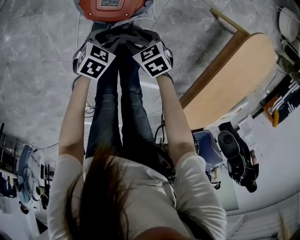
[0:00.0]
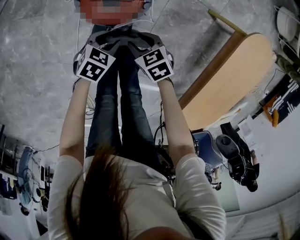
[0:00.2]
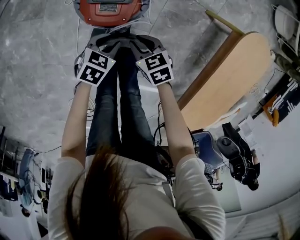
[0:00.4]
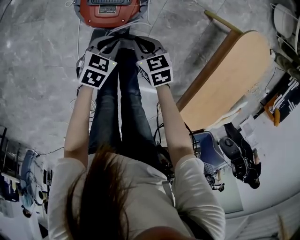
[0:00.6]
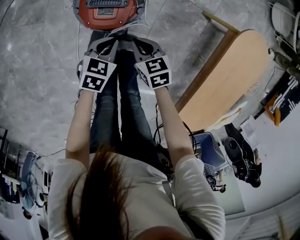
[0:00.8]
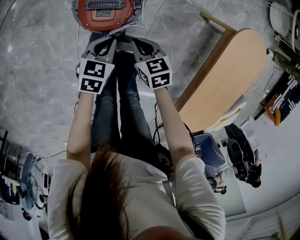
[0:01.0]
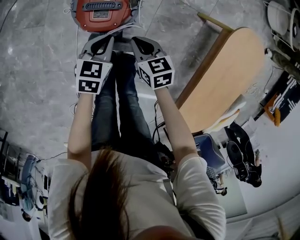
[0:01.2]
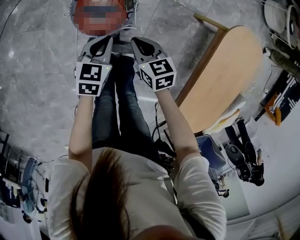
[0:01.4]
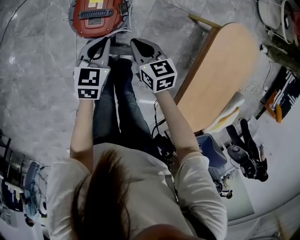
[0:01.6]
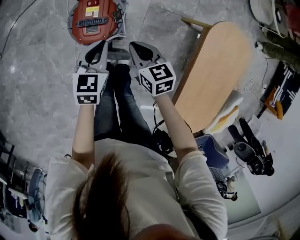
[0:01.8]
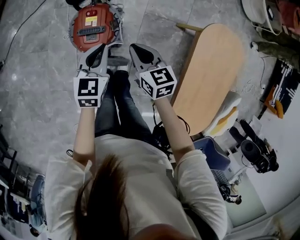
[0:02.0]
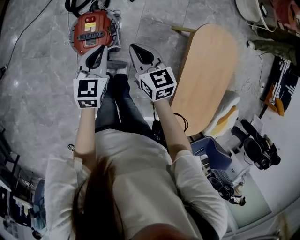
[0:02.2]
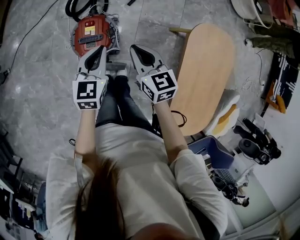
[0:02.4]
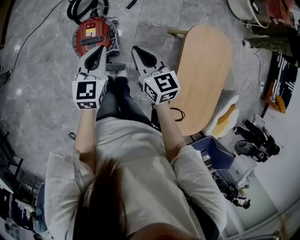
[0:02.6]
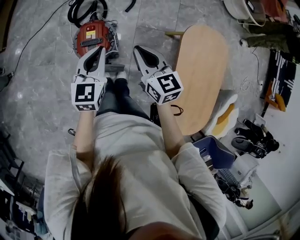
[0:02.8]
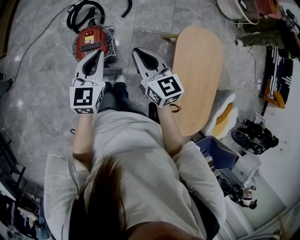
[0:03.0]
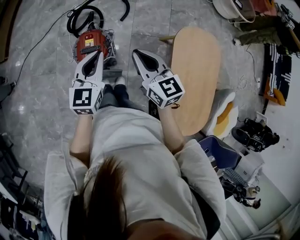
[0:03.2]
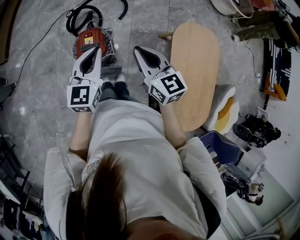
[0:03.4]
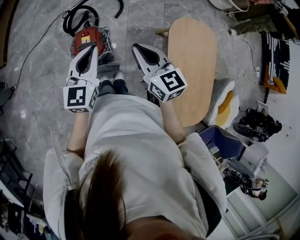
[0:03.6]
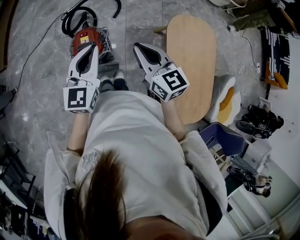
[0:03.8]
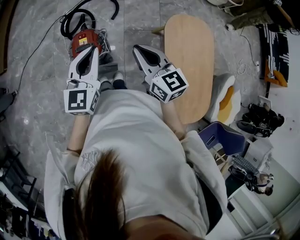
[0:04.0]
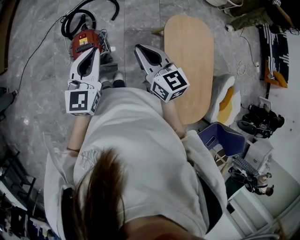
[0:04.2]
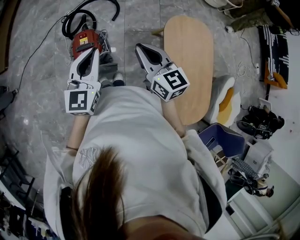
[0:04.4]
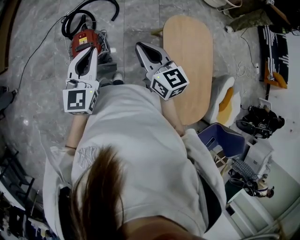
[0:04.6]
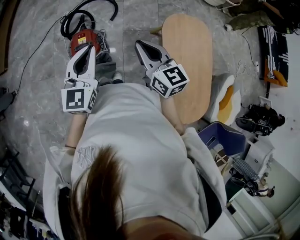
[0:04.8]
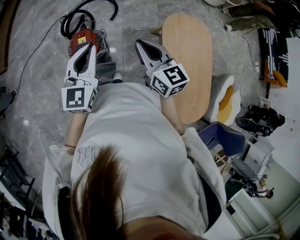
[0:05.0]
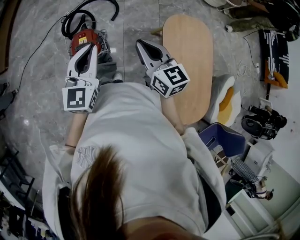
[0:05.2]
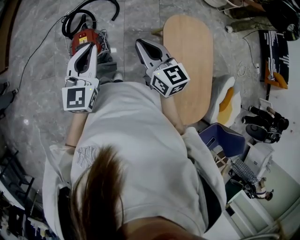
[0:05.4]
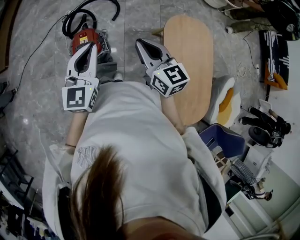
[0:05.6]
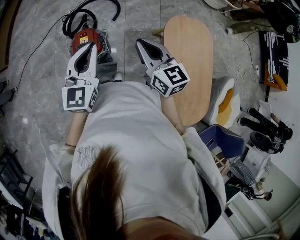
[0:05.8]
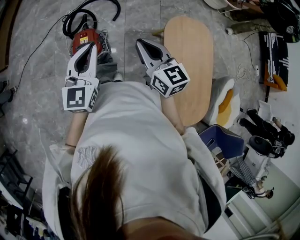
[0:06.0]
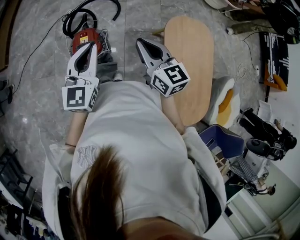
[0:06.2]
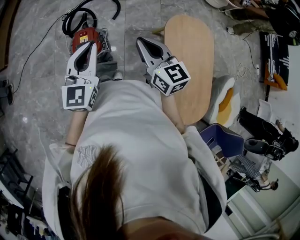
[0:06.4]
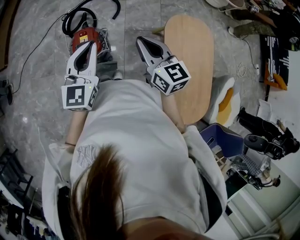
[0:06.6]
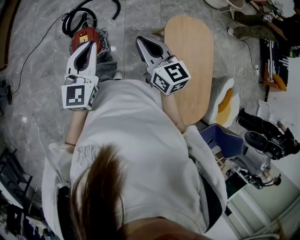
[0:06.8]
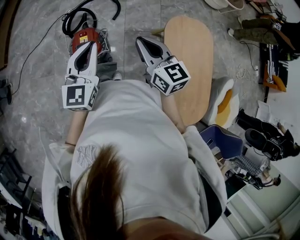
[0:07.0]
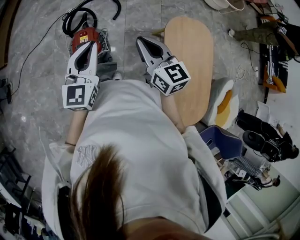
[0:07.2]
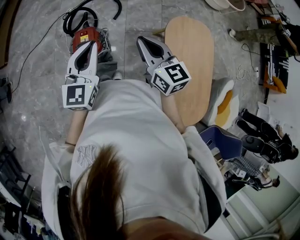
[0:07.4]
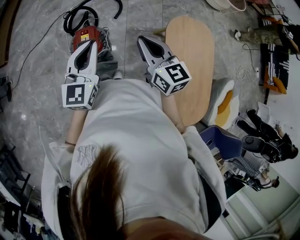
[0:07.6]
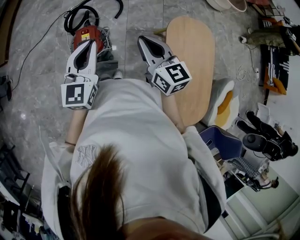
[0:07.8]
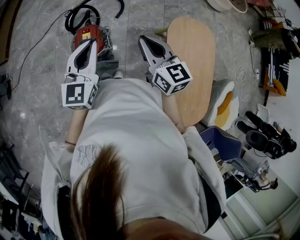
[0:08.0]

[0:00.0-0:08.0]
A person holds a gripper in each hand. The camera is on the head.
0:00.0 to 0:01.6: Both grippers move upward, some 15 cm. The right gripper rotates approximately 30 degrees, and closes. Meanwhile the left gripper swivels some 30 degrees, and closes up.
0:01.6 to 0:03.2: Both grippers move upward, about 35 cm. The right gripper turns by about 30 degrees; the left gripper turns by approximately 30 degrees.
0:03.2 to 0:04.8: The left gripper moves upward and backward, about 10 cm; the right gripper shifts some 10 cm backward and to the right.
0:04.8 to 0:06.4: Both grippers stay put.
0:06.4 to 0:08.0: The grippers stay close to where they were, moving slightly.

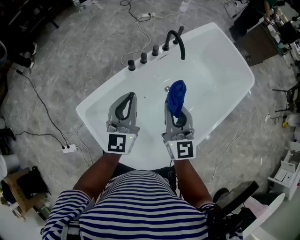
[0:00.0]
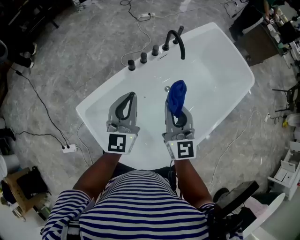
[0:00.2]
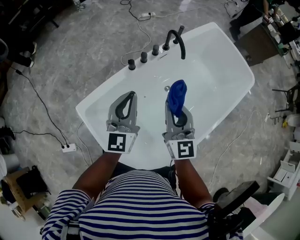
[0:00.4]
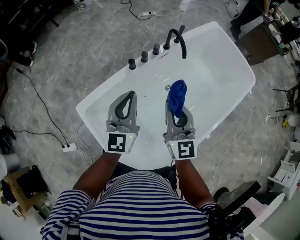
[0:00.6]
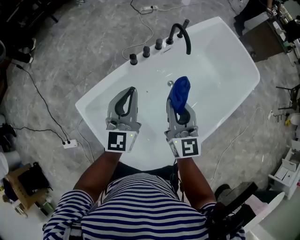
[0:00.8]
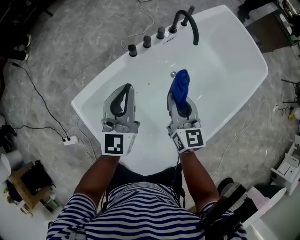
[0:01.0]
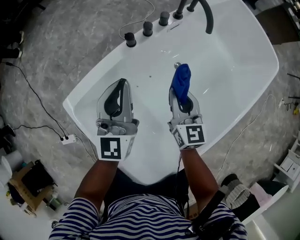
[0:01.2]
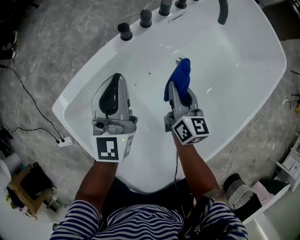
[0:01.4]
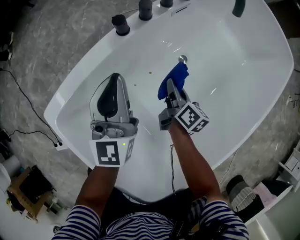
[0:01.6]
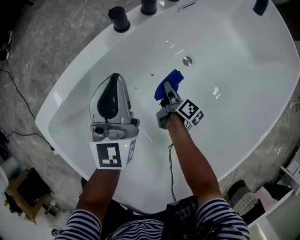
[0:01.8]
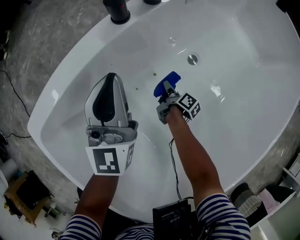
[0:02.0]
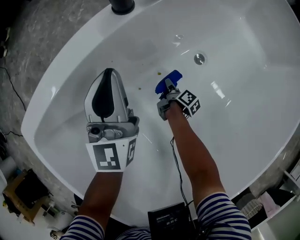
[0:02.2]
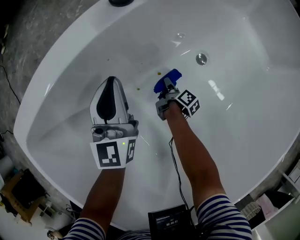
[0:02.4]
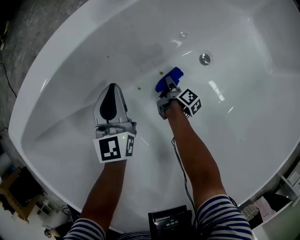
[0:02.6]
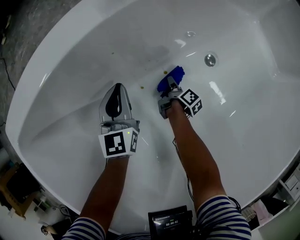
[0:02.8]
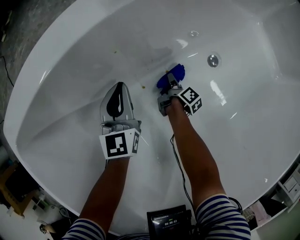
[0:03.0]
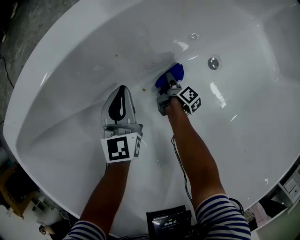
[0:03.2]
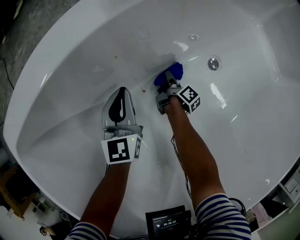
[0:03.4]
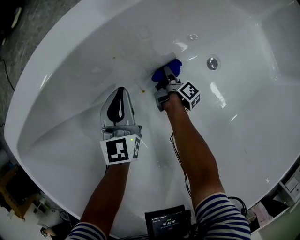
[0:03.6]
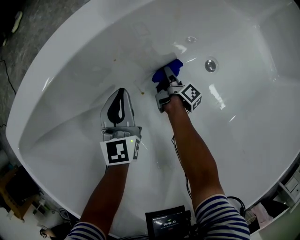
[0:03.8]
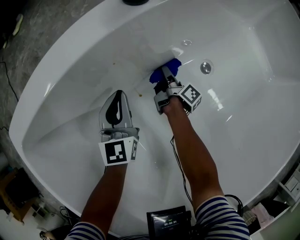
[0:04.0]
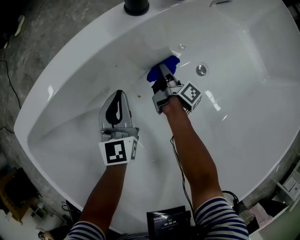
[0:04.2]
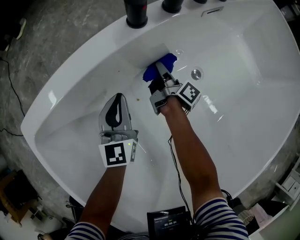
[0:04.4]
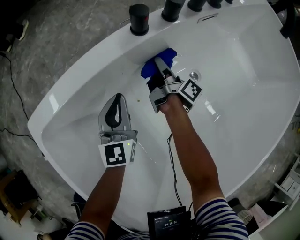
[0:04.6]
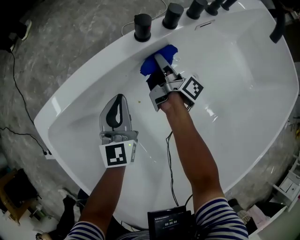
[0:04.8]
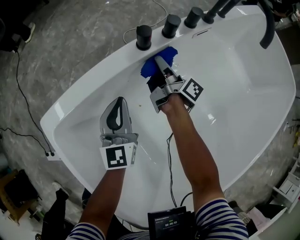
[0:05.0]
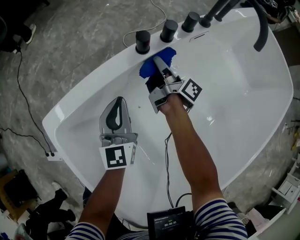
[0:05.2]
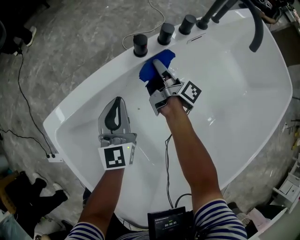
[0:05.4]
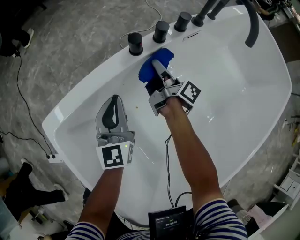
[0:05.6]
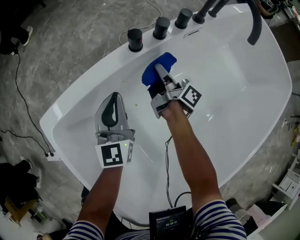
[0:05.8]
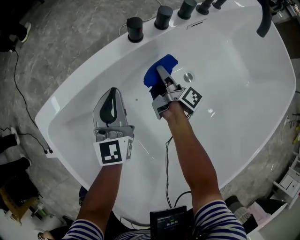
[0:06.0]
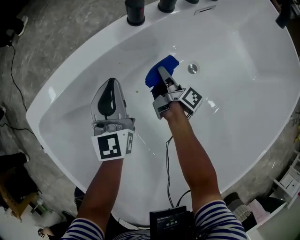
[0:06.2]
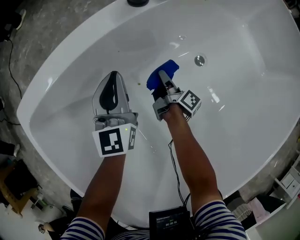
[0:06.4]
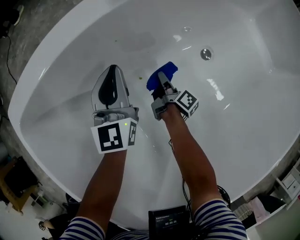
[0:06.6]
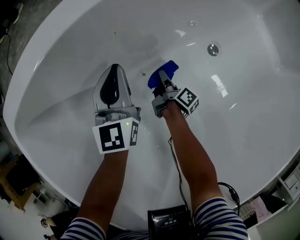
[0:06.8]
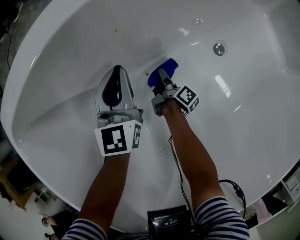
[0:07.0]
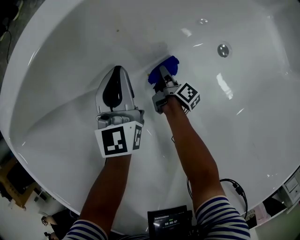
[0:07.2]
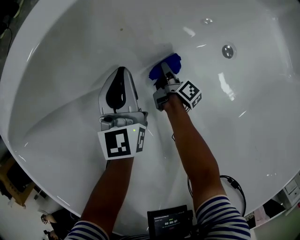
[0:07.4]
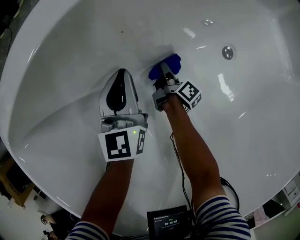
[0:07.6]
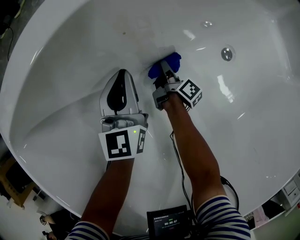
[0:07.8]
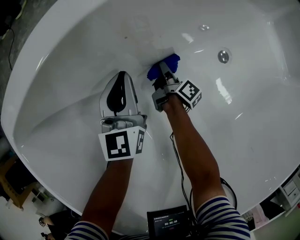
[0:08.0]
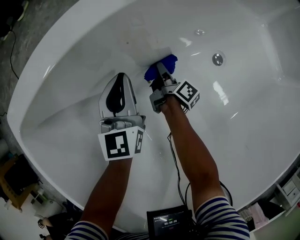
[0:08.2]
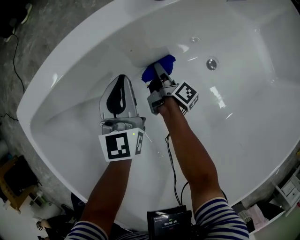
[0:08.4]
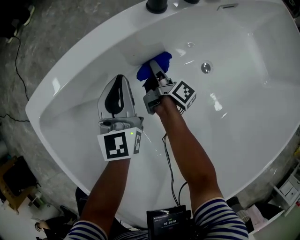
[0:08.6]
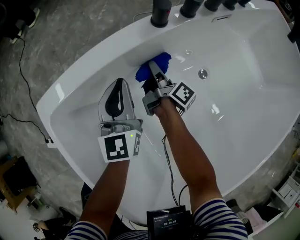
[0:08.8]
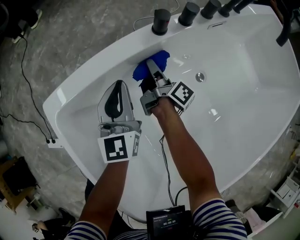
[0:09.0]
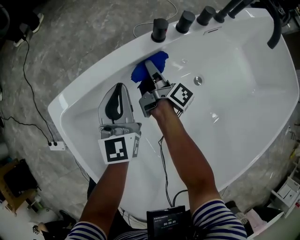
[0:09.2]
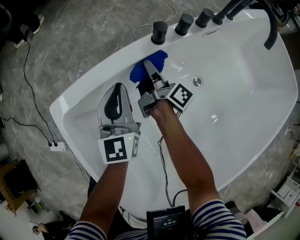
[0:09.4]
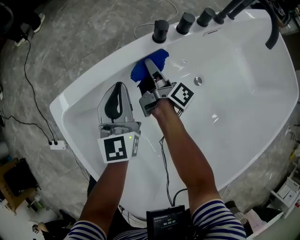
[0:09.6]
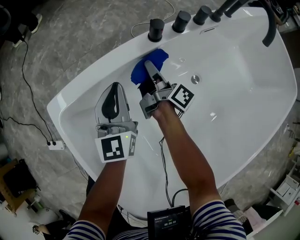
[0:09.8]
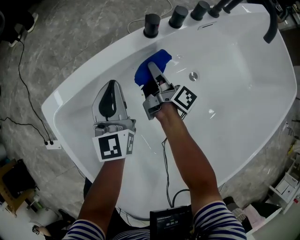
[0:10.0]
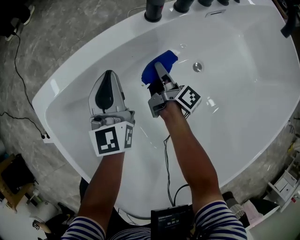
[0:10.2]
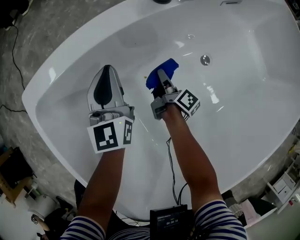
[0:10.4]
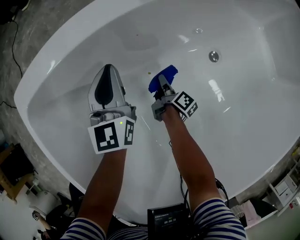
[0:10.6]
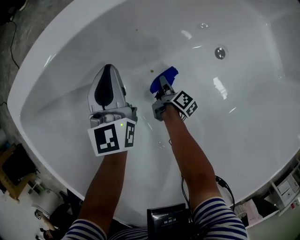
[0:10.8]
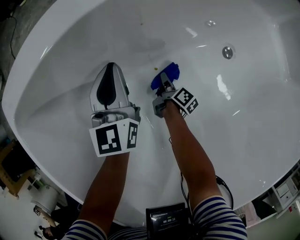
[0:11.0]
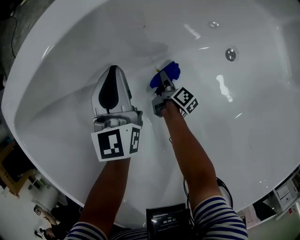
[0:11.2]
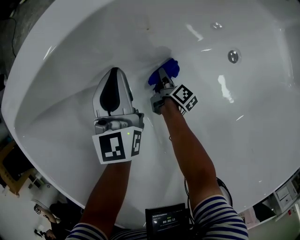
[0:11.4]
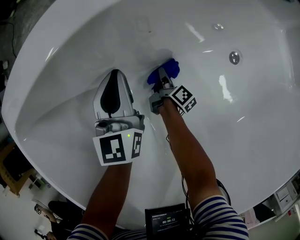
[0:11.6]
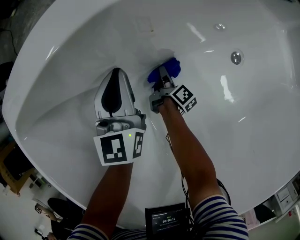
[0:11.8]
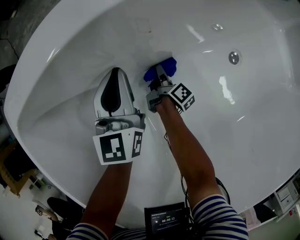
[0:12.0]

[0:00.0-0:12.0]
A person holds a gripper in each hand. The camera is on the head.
0:00.0 to 0:01.6: The left gripper is displaced downward by roughly 30 cm.
0:01.6 to 0:03.0: The left gripper heads downward, covering roughly 40 cm, and changes its angle by some 20 degrees.
0:03.0 to 0:04.4: The left gripper travels upward by approximately 10 cm.
0:04.4 to 0:06.0: The left gripper is displaced upward by roughly 15 cm.
0:06.0 to 0:07.6: The left gripper shifts some 25 cm downward.
0:07.6 to 0:09.0: The left gripper moves upward, some 25 cm.
0:09.0 to 0:10.4: The left gripper moves downward, about 10 cm.
0:10.4 to 0:12.0: The left gripper travels downward by roughly 15 cm.

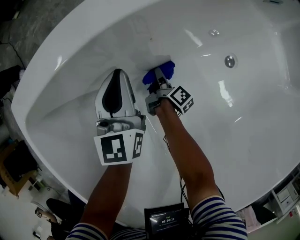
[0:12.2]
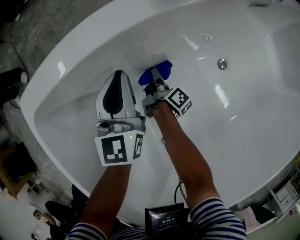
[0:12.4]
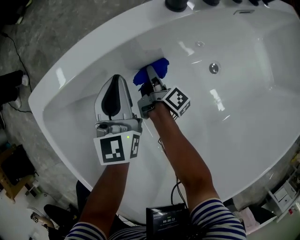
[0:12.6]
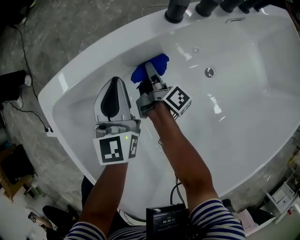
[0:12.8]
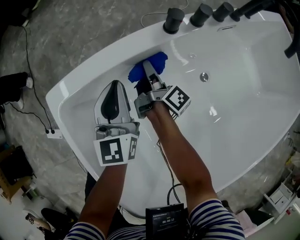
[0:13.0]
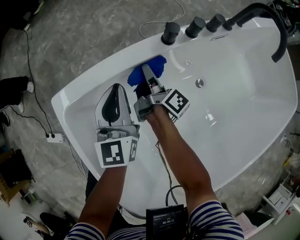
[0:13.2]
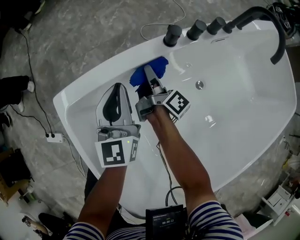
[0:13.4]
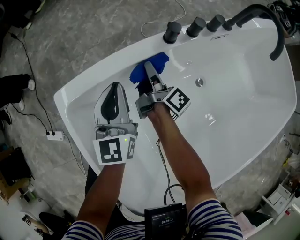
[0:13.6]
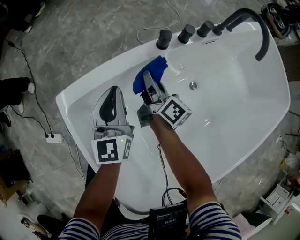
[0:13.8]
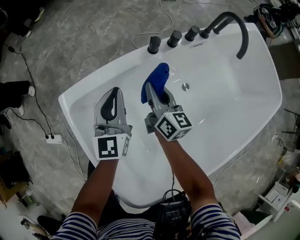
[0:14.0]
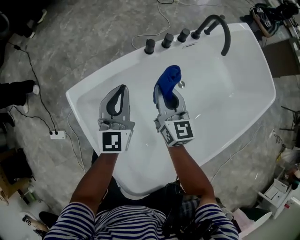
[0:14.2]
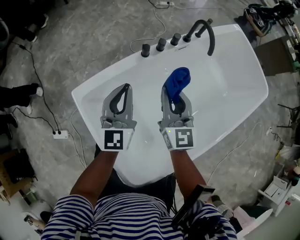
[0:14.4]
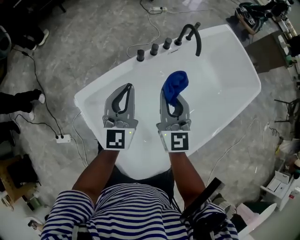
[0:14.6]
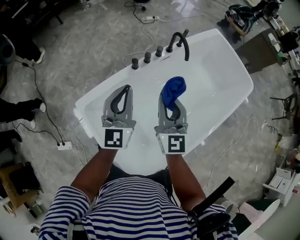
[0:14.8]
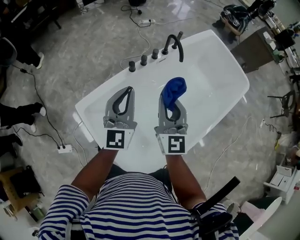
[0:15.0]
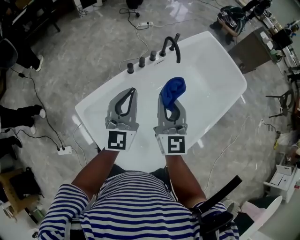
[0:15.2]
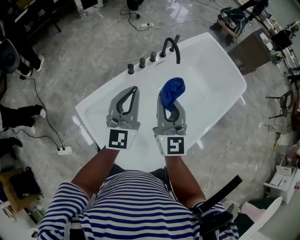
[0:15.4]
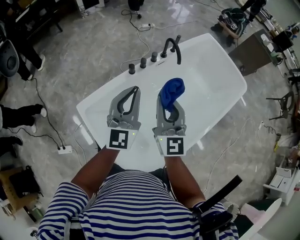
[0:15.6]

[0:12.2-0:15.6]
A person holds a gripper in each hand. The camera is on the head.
0:12.2 to 0:13.8: The left gripper goes approximately 30 cm upward.
0:13.8 to 0:15.6: The left gripper travels upward by some 40 cm, and swivels about 30 degrees.
